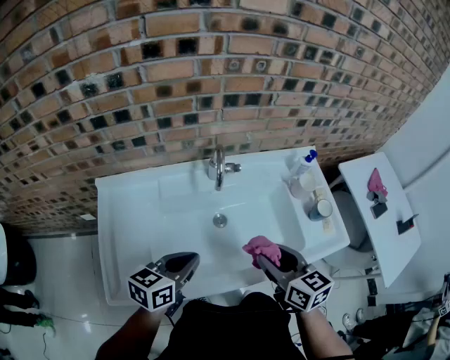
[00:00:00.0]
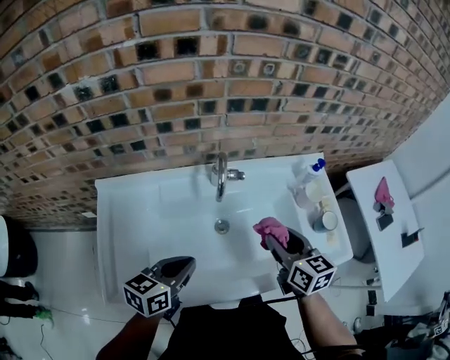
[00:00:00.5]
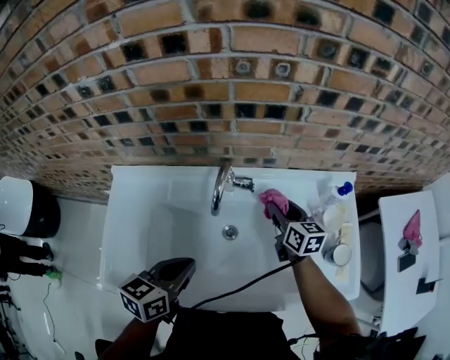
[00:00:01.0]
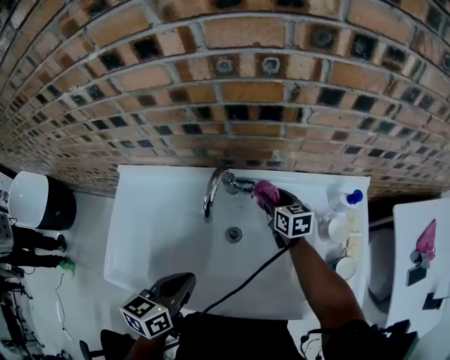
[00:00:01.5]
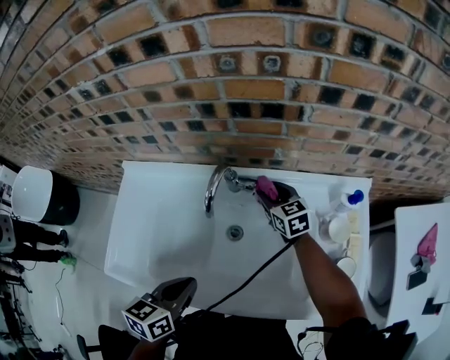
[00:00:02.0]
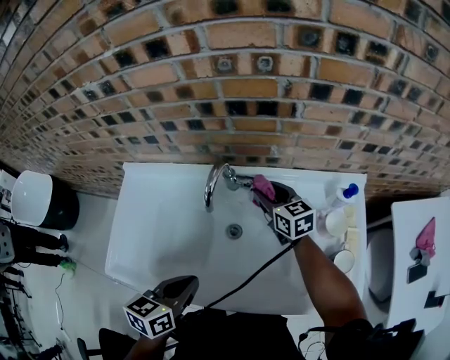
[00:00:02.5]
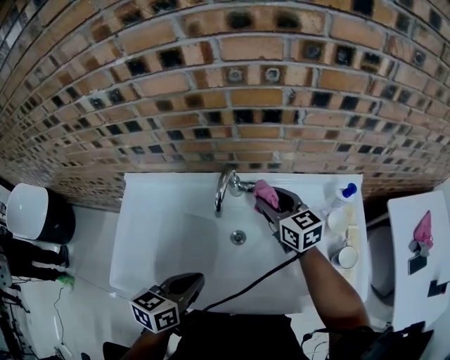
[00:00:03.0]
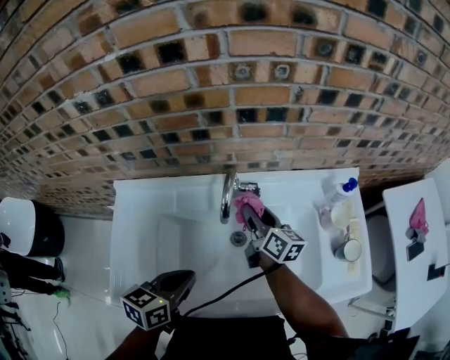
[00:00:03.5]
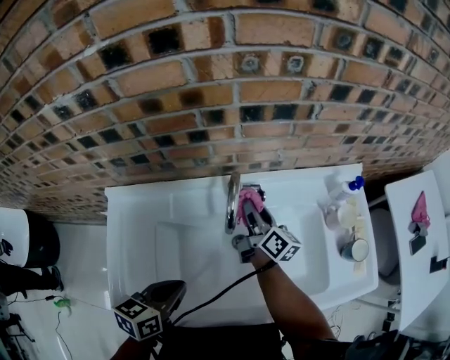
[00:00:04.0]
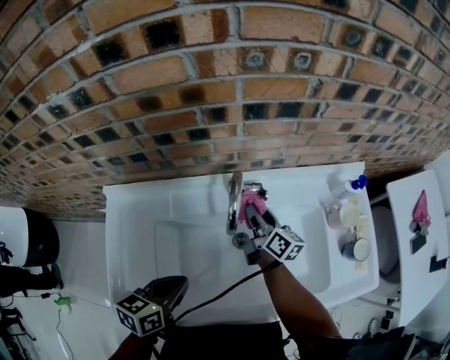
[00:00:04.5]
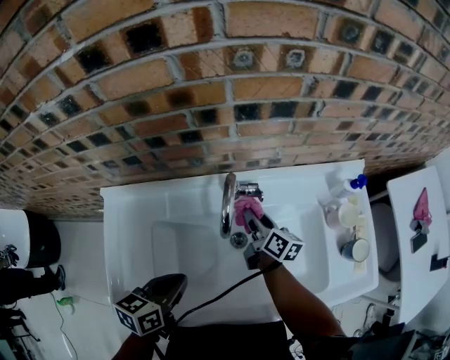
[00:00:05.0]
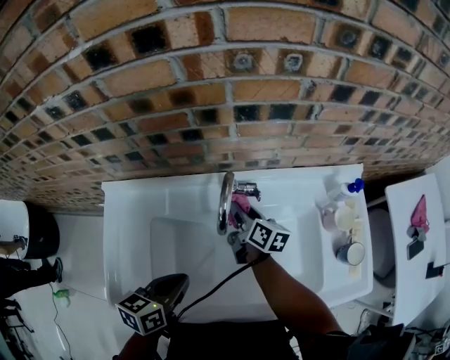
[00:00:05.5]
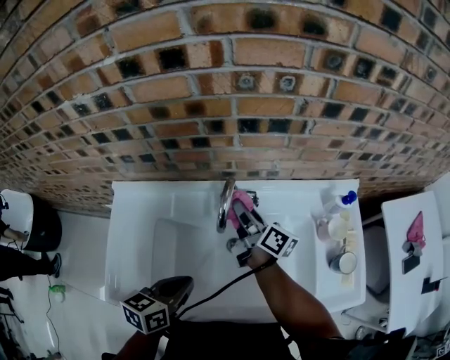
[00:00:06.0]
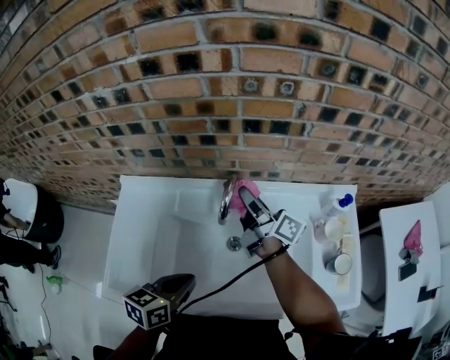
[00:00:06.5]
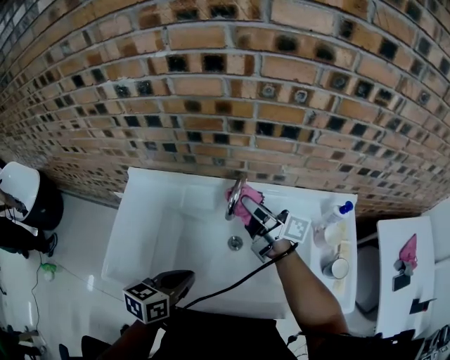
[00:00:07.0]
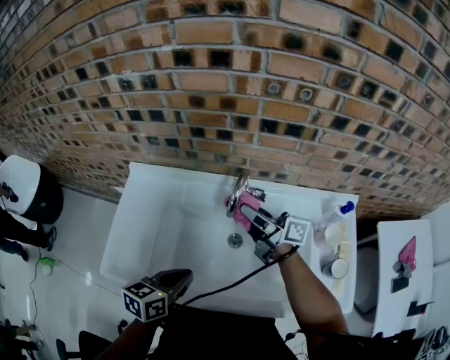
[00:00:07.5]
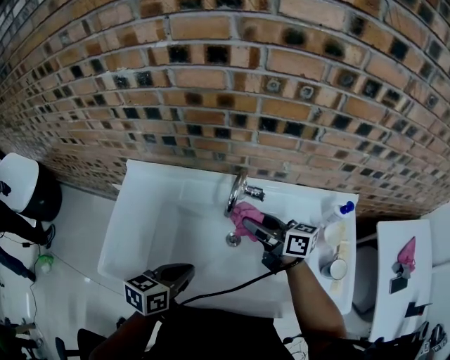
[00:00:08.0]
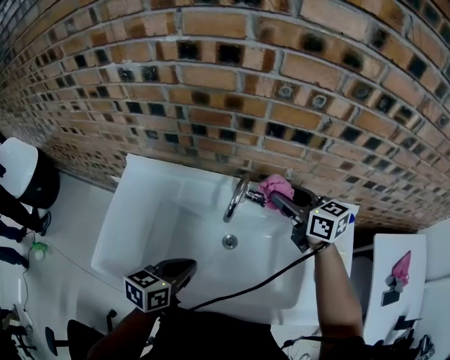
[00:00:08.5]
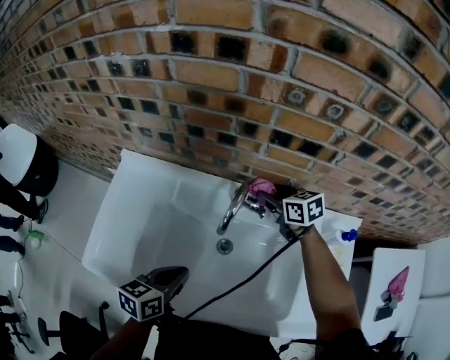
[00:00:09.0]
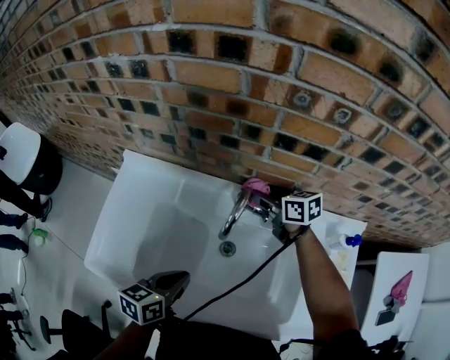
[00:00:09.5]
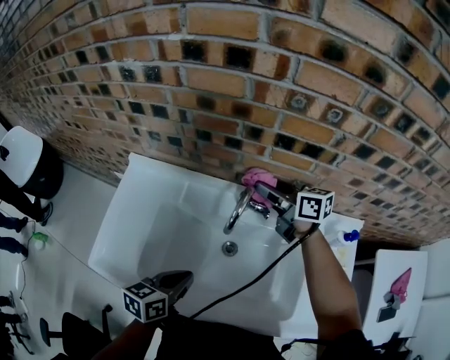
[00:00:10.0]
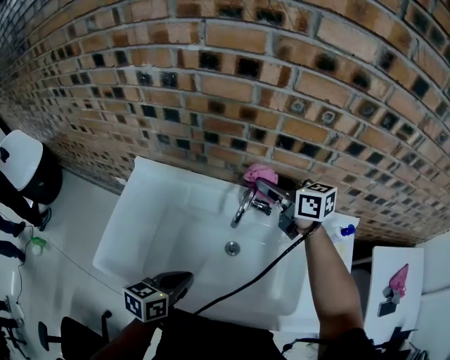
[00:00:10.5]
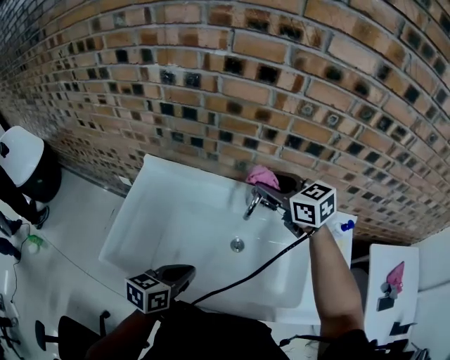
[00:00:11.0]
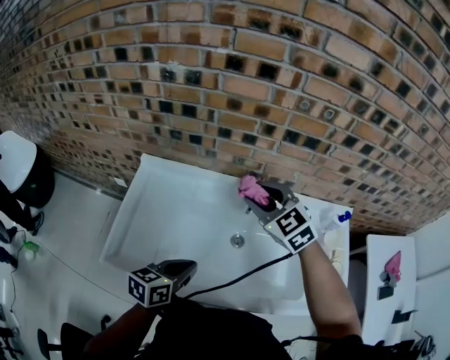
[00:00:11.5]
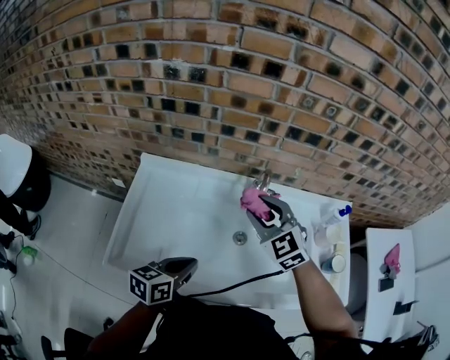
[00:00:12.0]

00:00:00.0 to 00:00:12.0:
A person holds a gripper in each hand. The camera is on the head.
00:00:00.0 to 00:00:02.0: The left gripper ends up roughly 5 cm from where it was, and turns by about 30 degrees. The right gripper shifts by about 35 cm, and turns by approximately 30 degrees.
00:00:02.0 to 00:00:04.0: The right gripper moves some 10 cm upward and comes back, and twists roughly 50 degrees clockwise, seen from behind, while the left gripper moves to the left, roughly 10 cm.
00:00:04.0 to 00:00:06.0: The right gripper goes roughly 5 cm upward. Meanwhile the left gripper shifts by roughly 5 cm.
00:00:06.0 to 00:00:08.0: The right gripper is displaced backward by approximately 10 cm, and rotates approximately 40 degrees.
00:00:08.0 to 00:00:10.0: The right gripper moves forward, approximately 15 cm.
00:00:10.0 to 00:00:12.0: The left gripper shifts approximately 10 cm to the left, while the right gripper is displaced backward and to the left by roughly 20 cm, and rolls counterclockwise, seen from behind, by about 60 degrees.

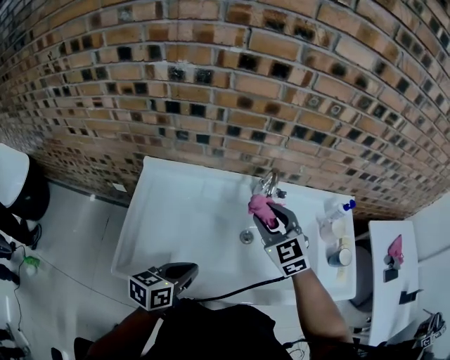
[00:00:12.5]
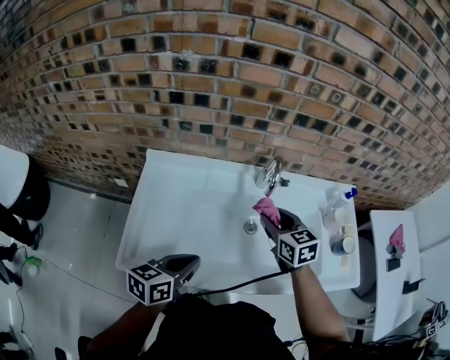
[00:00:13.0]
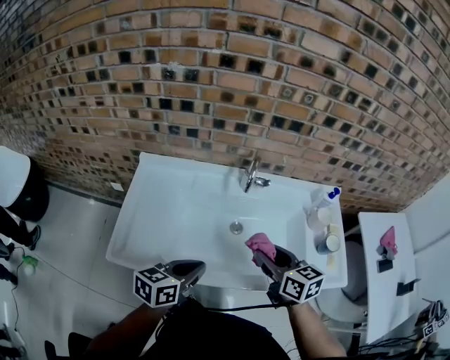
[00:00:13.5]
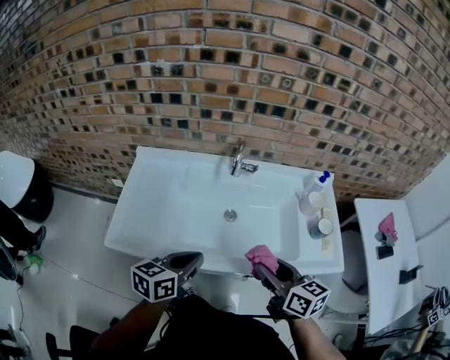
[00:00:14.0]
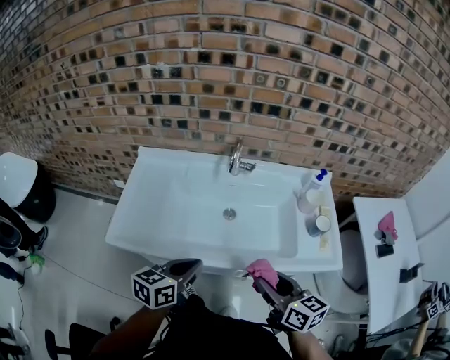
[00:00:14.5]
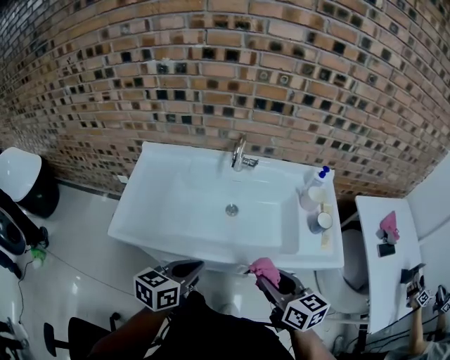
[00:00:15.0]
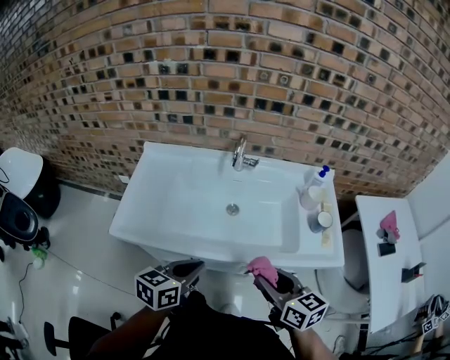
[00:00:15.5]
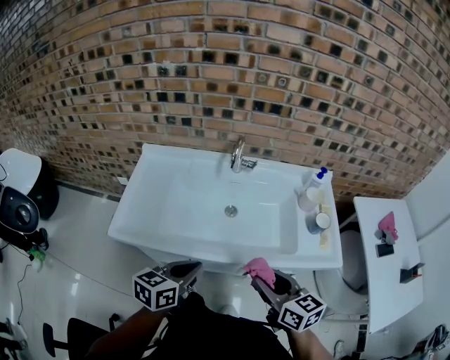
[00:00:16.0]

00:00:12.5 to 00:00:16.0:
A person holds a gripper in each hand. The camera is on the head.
00:00:12.5 to 00:00:14.5: The left gripper is displaced to the right and backward by some 15 cm. Meanwhile the right gripper goes about 35 cm backward and to the right, and twists roughly 50 degrees clockwise, seen from behind.
00:00:14.5 to 00:00:16.0: The grippers make only small movements.

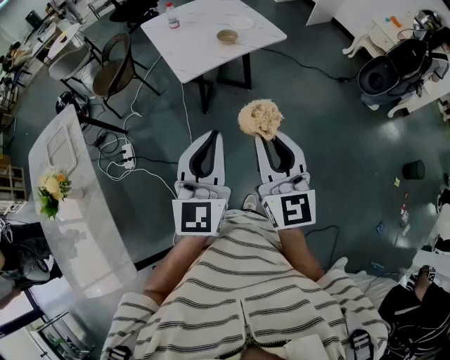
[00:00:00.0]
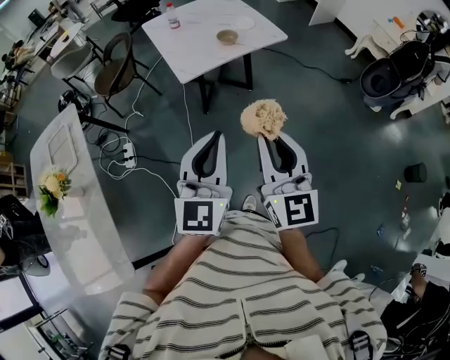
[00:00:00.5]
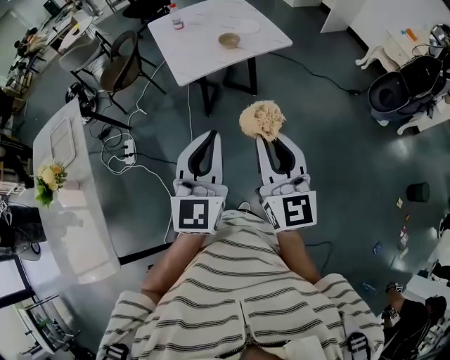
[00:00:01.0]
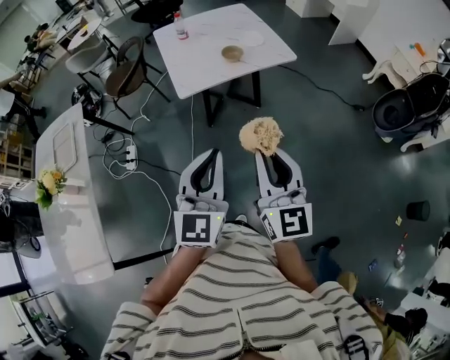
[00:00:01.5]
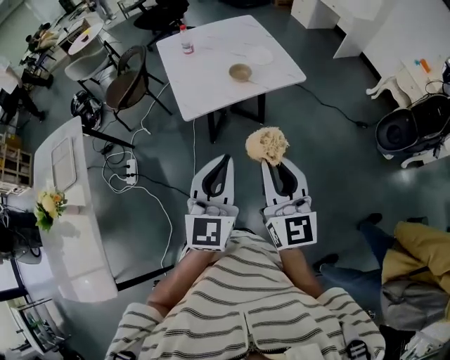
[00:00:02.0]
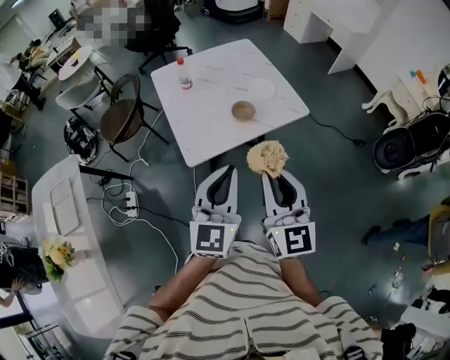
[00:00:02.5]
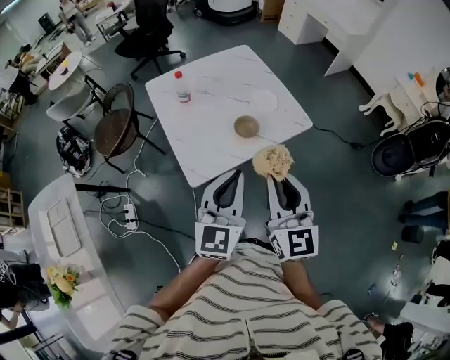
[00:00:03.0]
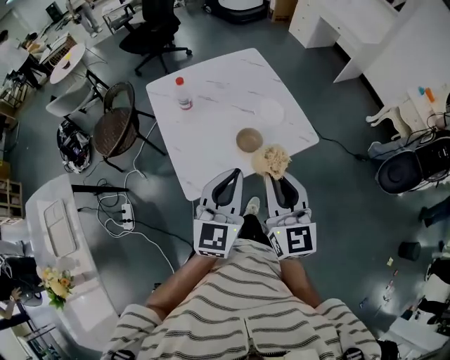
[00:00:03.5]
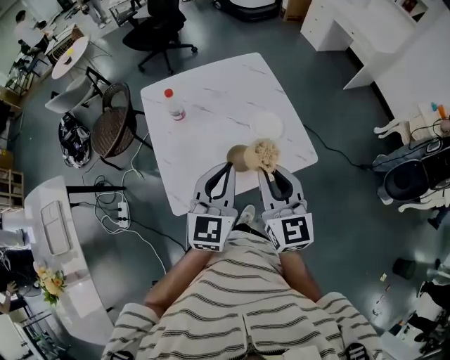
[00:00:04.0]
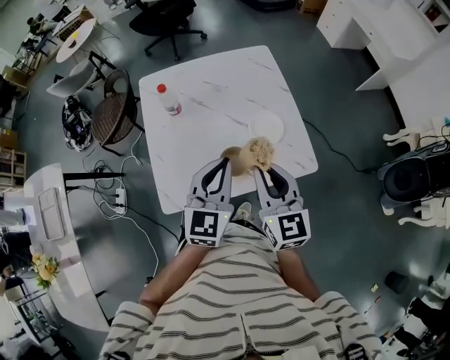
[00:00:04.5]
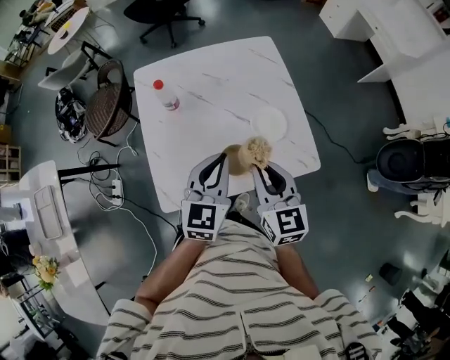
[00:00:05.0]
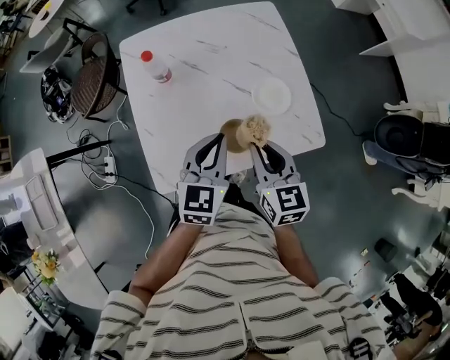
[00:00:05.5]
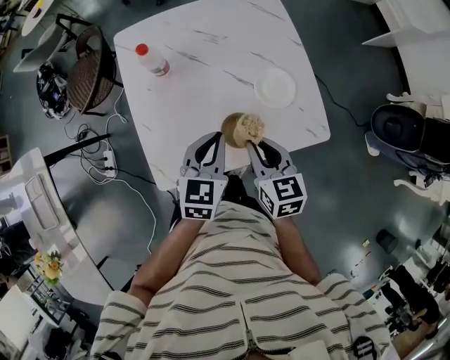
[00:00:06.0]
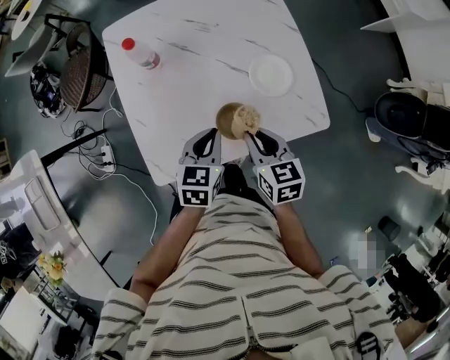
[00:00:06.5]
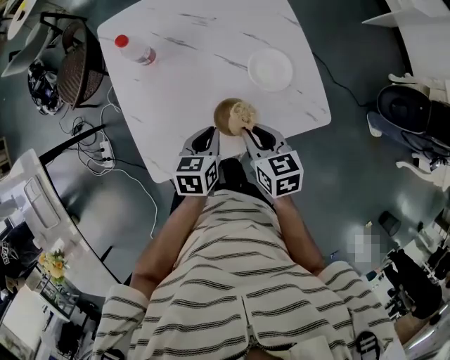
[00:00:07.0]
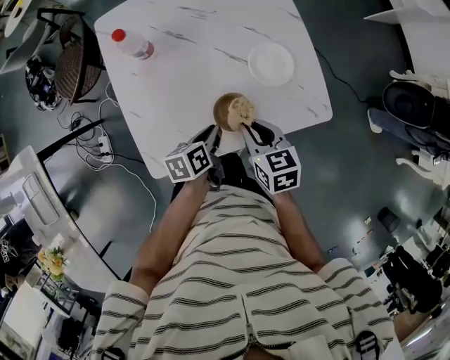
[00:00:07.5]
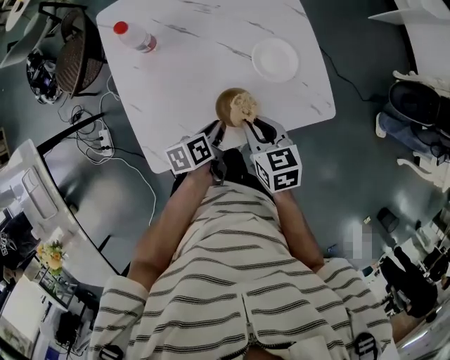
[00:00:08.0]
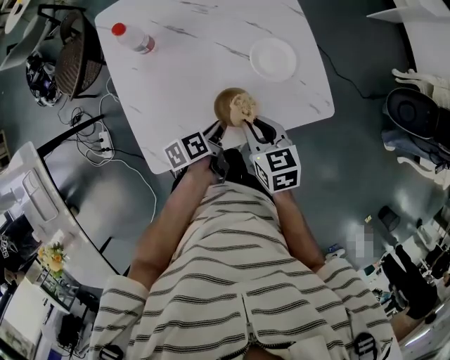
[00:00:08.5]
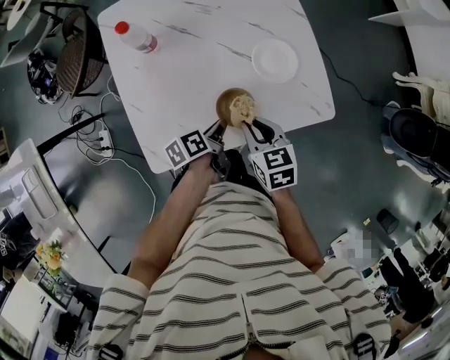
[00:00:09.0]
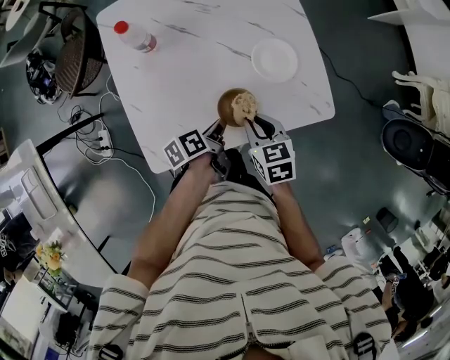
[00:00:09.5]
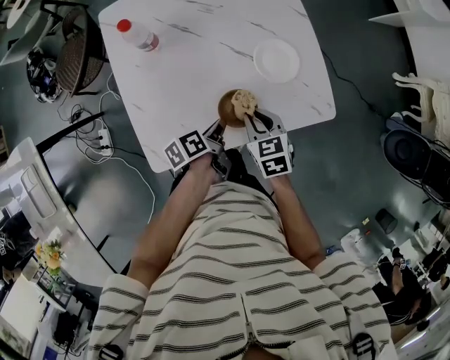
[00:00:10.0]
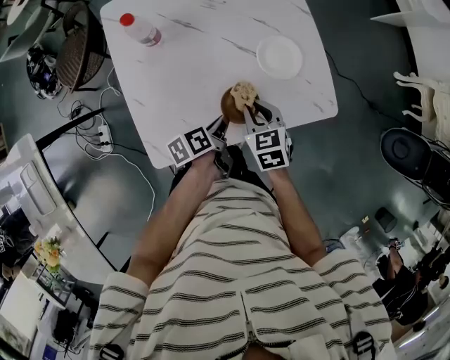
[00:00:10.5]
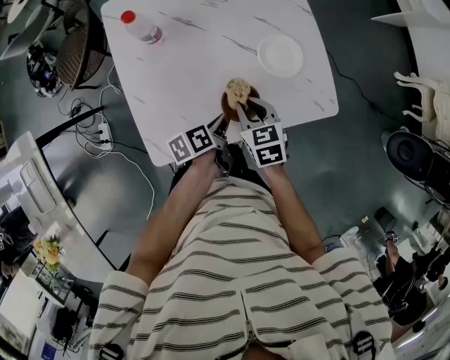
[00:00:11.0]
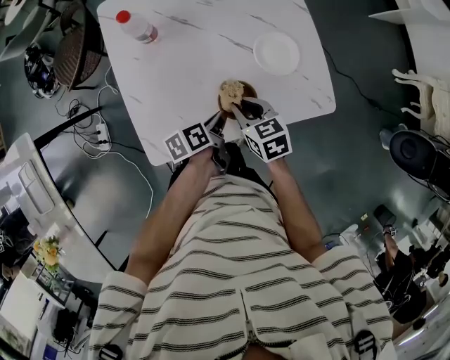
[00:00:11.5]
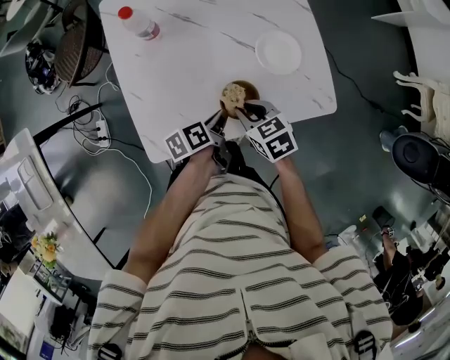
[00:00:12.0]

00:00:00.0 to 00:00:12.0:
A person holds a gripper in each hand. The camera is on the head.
00:00:00.0 to 00:00:02.0: Both grippers travel together forward and to the right, approximately 20 cm.
00:00:02.0 to 00:00:04.0: Both grippers are carried forward, approximately 40 cm.
00:00:04.0 to 00:00:06.0: The grippers both shift downward and forward by some 20 cm. The left gripper swivels roughly 30 degrees, while the right gripper swivels about 30 degrees.
00:00:06.0 to 00:00:08.0: The left gripper goes approximately 15 cm downward, and rotates around the line of its fingers by approximately 50 degrees, counterclockwise from behind. Meanwhile the right gripper moves downward, approximately 5 cm.
00:00:08.0 to 00:00:10.0: The grippers move only a little.
00:00:10.0 to 00:00:12.0: There are only small adjustments of the grippers.
